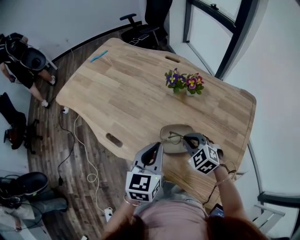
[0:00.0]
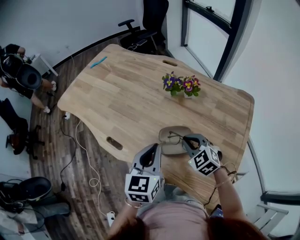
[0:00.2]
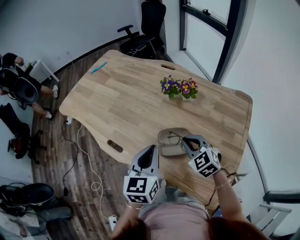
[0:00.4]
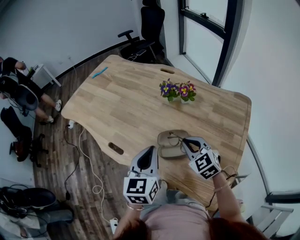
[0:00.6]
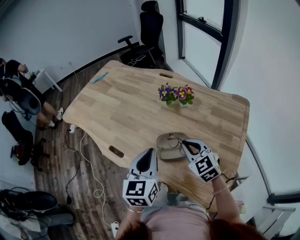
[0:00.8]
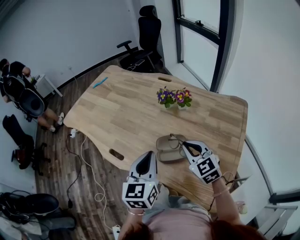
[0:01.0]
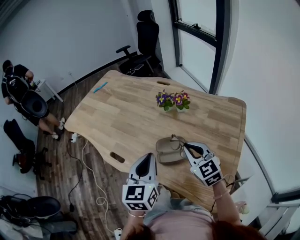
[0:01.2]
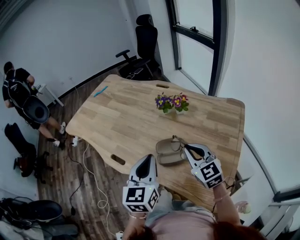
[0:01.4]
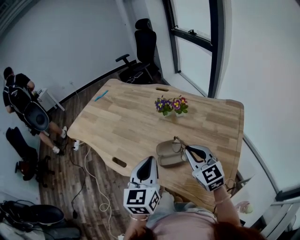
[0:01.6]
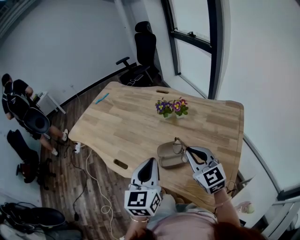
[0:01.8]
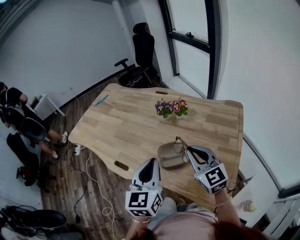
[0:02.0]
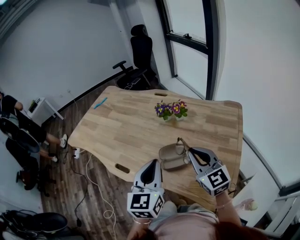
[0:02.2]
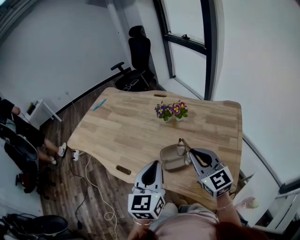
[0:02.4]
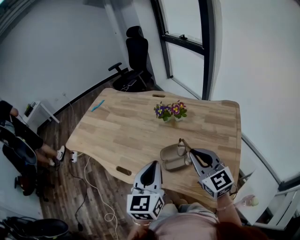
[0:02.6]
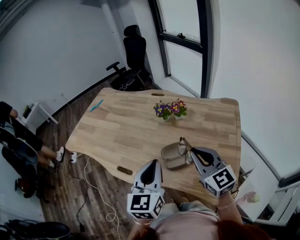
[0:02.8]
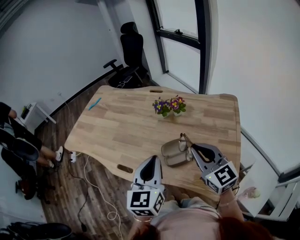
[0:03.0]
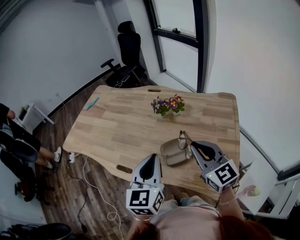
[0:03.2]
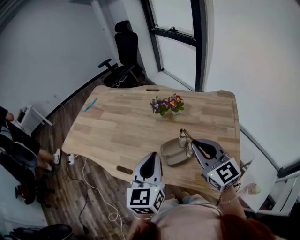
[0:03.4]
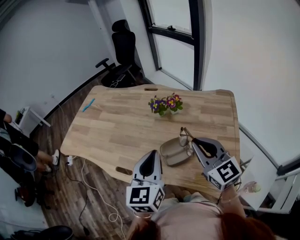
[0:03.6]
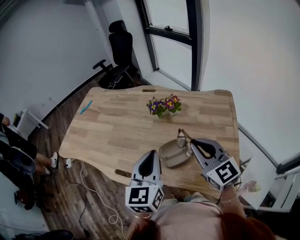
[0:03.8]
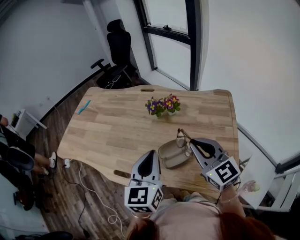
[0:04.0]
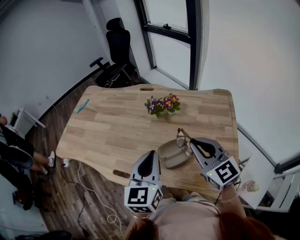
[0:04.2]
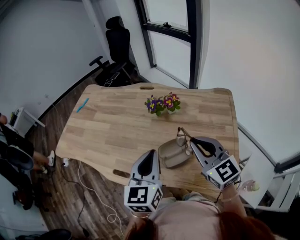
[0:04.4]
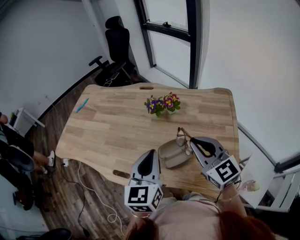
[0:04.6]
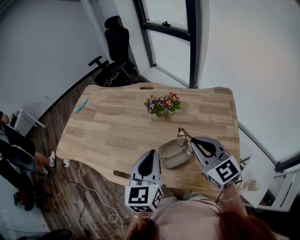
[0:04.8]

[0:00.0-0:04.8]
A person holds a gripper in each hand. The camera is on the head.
0:00.0 to 0:01.6: The right gripper goes roughly 15 cm upward and backward, and angles its fingers upward, by roughly 30 degrees. Meanwhile the left gripper moves upward and backward, about 10 cm.
0:01.6 to 0:03.2: The right gripper is displaced upward by approximately 10 cm.
0:03.2 to 0:04.8: The left gripper shifts approximately 5 cm forward.

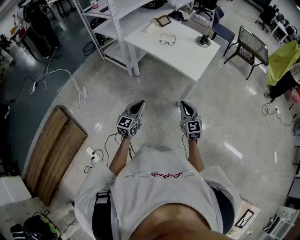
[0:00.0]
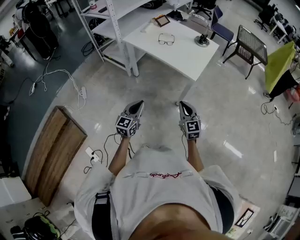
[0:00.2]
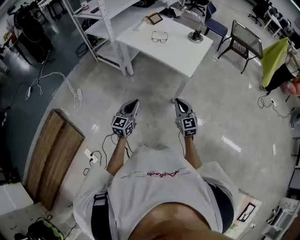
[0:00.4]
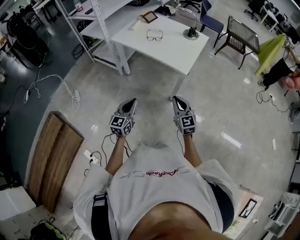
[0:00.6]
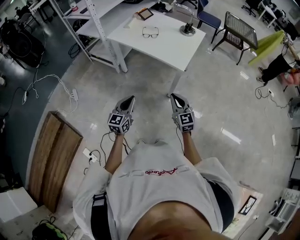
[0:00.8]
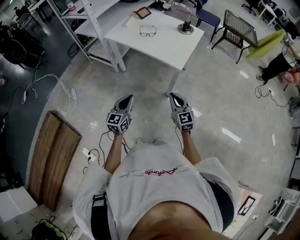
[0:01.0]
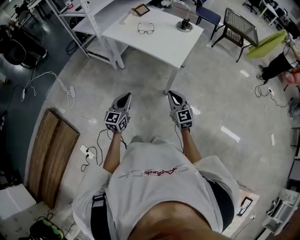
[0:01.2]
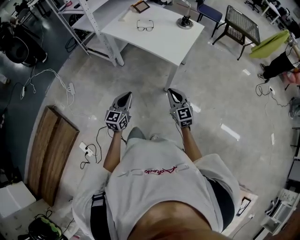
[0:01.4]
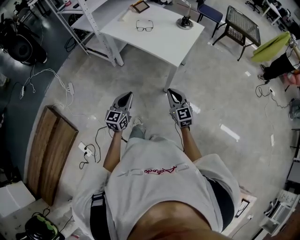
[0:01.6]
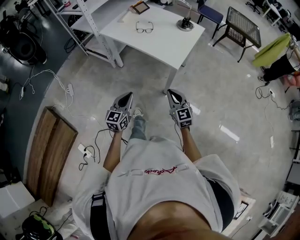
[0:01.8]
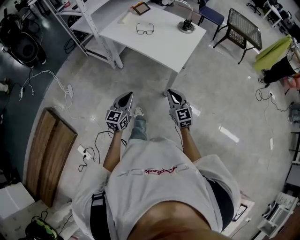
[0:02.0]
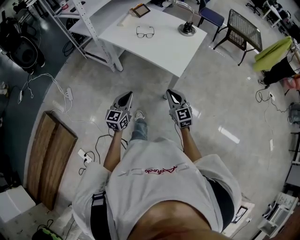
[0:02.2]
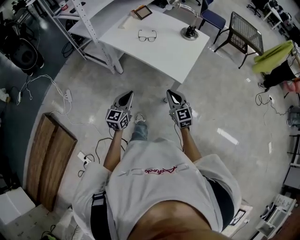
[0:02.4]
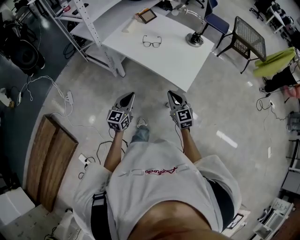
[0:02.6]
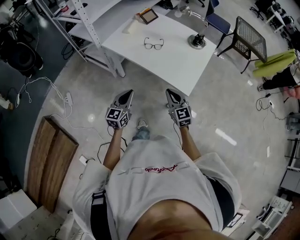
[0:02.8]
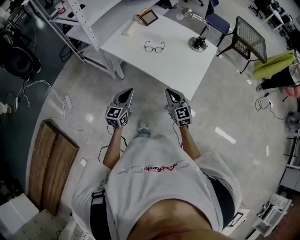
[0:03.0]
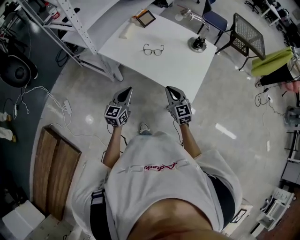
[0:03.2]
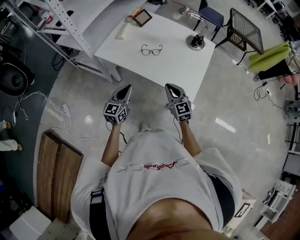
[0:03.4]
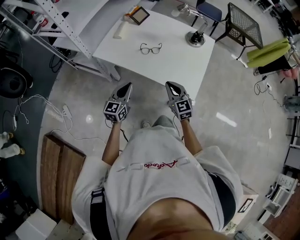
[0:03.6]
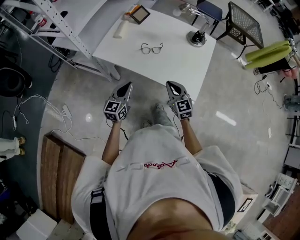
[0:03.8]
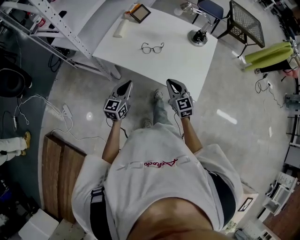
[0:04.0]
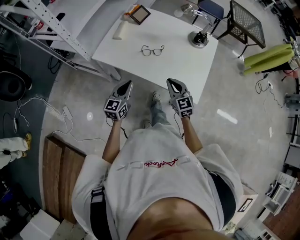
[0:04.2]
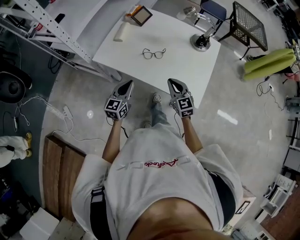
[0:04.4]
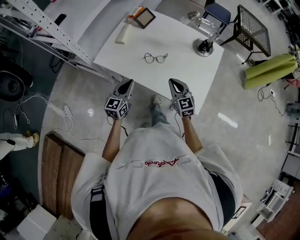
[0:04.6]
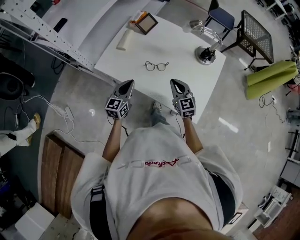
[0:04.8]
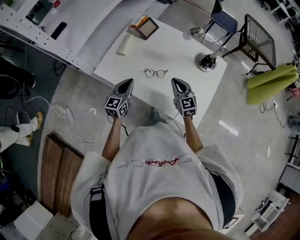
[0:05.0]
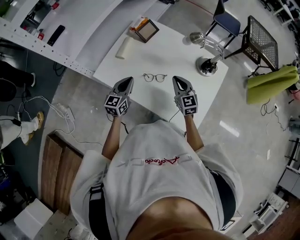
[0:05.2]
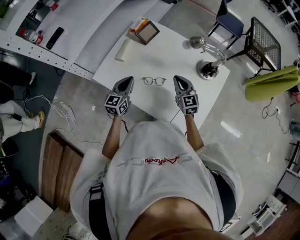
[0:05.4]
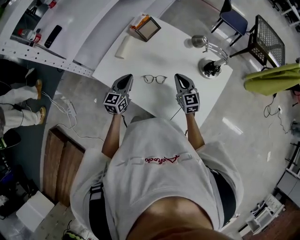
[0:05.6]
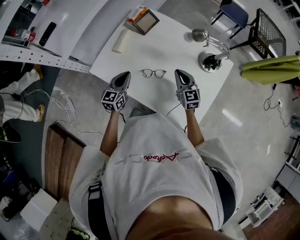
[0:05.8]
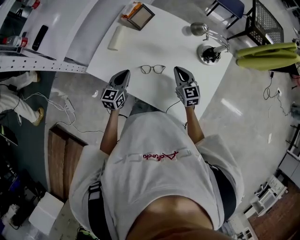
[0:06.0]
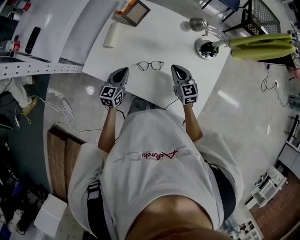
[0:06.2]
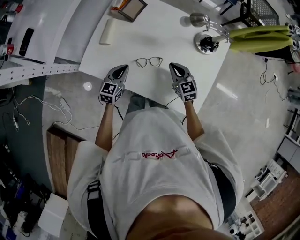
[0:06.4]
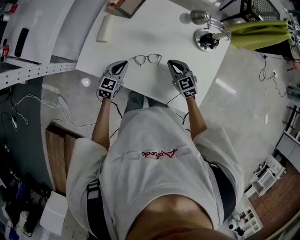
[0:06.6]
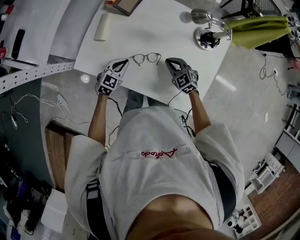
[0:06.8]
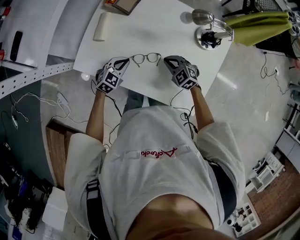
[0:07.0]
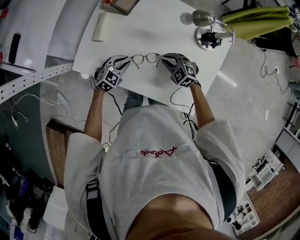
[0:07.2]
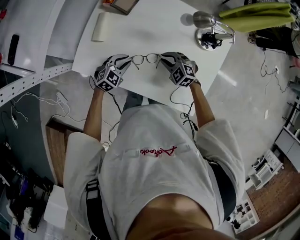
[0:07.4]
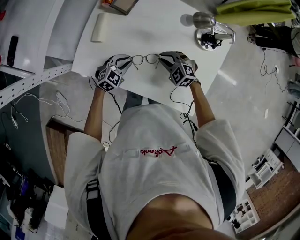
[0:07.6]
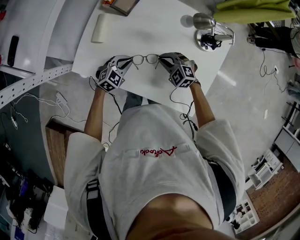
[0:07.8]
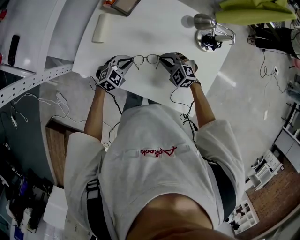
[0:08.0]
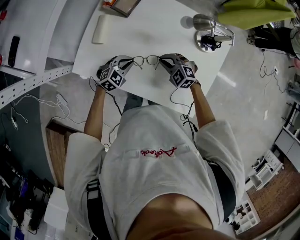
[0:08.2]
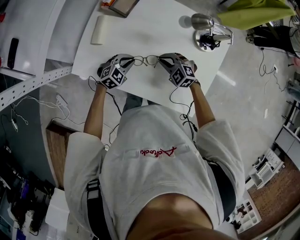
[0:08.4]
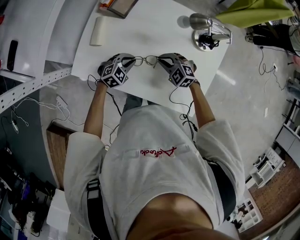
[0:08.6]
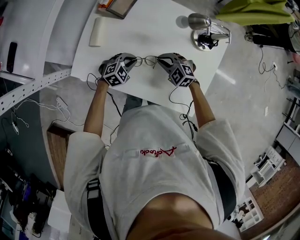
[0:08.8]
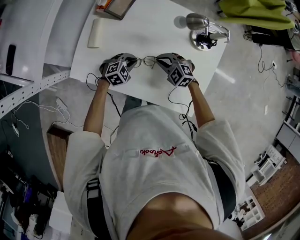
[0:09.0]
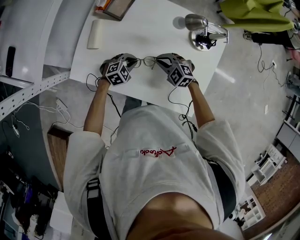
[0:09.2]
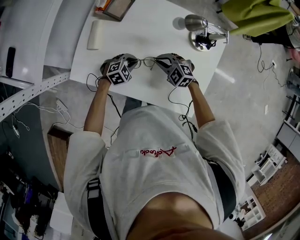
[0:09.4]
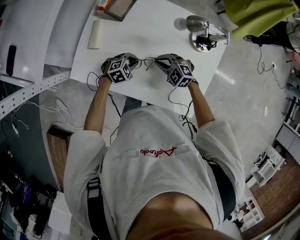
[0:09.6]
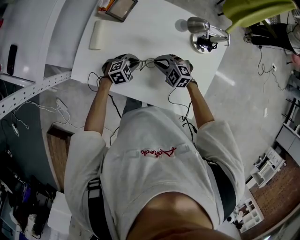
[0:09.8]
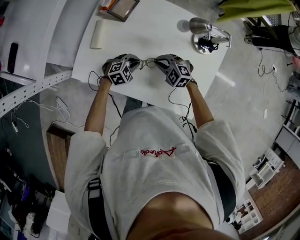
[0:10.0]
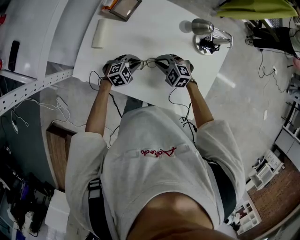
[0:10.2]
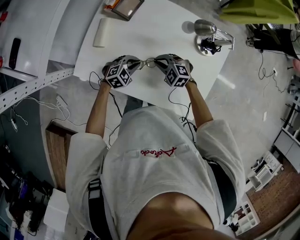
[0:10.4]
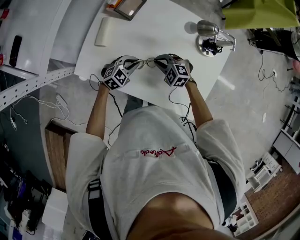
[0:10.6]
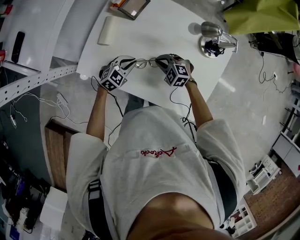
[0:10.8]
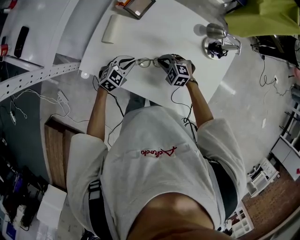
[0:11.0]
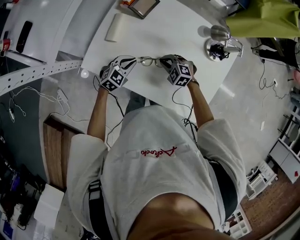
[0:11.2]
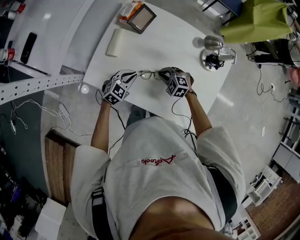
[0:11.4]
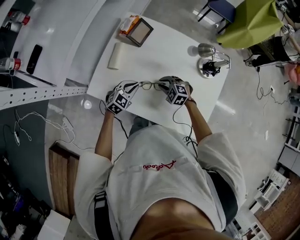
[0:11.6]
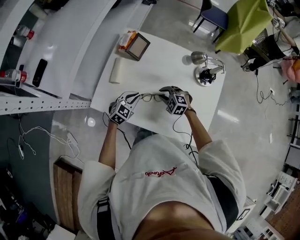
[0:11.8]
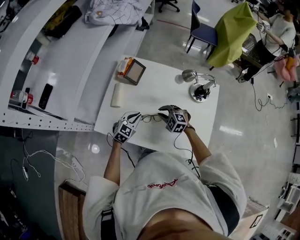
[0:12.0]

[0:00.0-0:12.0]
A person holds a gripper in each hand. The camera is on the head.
0:00.0 to 0:01.6: Both grippers travel together to the right, approximately 5 cm.
0:01.6 to 0:03.0: Both grippers travel together forward, roughly 25 cm.
0:03.0 to 0:04.4: Both grippers move forward, approximately 15 cm.
0:04.4 to 0:06.0: Both grippers travel together forward, approximately 20 cm.
0:06.0 to 0:07.6: The left gripper travels downward and to the right by roughly 10 cm, and swivels some 50 degrees. The right gripper shifts some 10 cm downward and to the left, and changes its angle by approximately 50 degrees.
0:07.6 to 0:09.0: The left gripper moves approximately 5 cm.
0:09.0 to 0:10.4: The grippers move only a little.
0:10.4 to 0:12.0: The left gripper moves upward, about 5 cm, and turns by some 20 degrees.

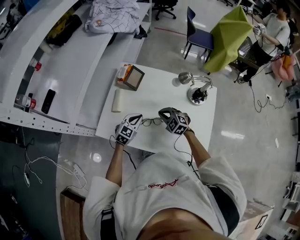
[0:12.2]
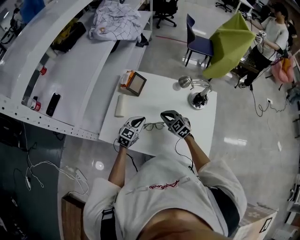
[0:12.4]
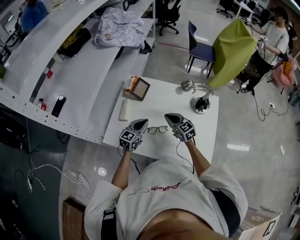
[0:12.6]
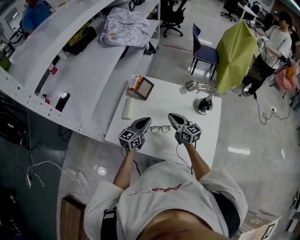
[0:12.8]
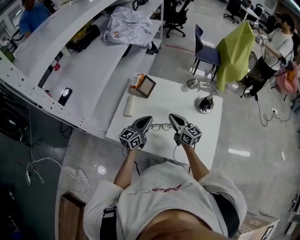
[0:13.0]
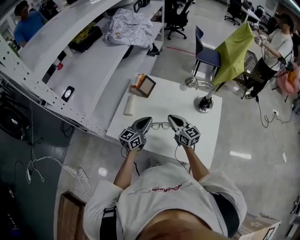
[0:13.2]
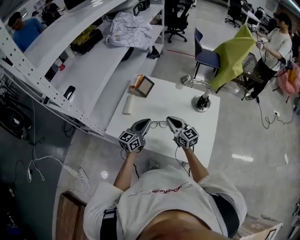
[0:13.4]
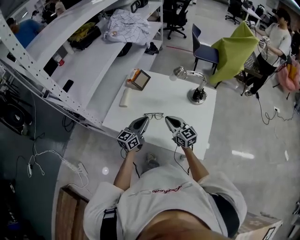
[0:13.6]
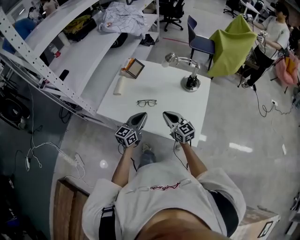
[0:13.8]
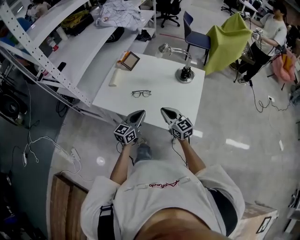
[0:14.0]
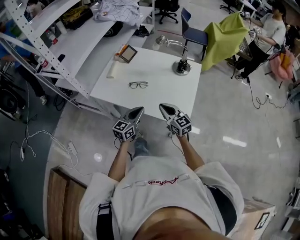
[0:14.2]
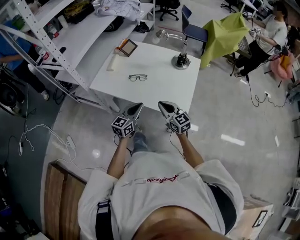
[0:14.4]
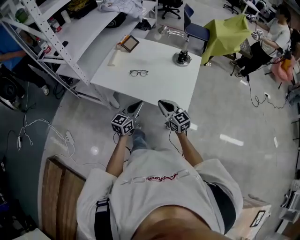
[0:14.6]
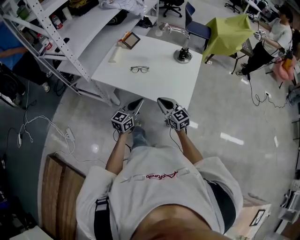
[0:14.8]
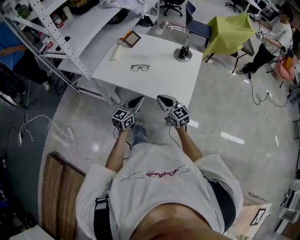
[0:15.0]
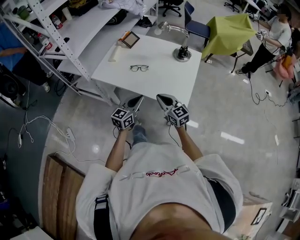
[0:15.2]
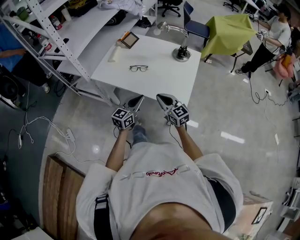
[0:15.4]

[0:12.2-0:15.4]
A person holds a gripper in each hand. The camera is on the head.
0:12.2 to 0:13.8: Both grippers travel together backward, upward and to the right, approximately 20 cm. The right gripper tips its fingers upward by about 30 degrees. The left gripper swivels approximately 40 degrees.
0:13.8 to 0:15.4: Both grippers move backward, approximately 15 cm.

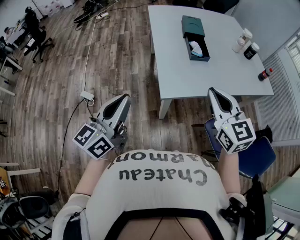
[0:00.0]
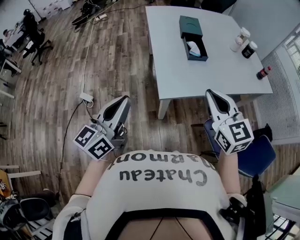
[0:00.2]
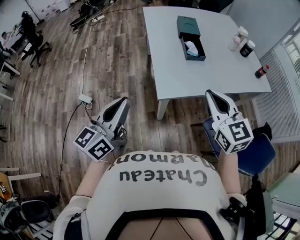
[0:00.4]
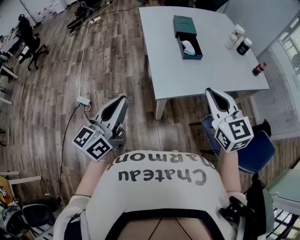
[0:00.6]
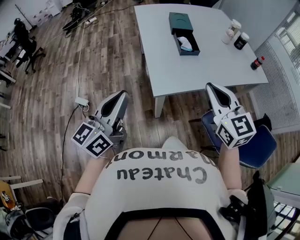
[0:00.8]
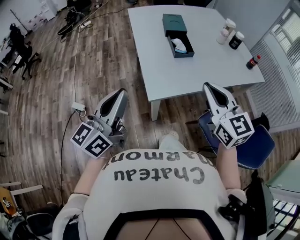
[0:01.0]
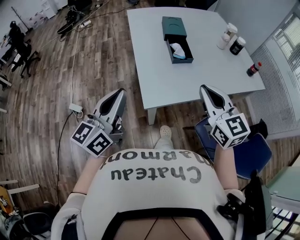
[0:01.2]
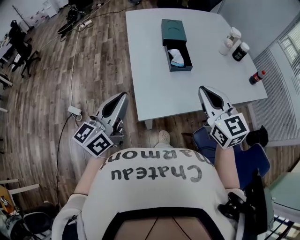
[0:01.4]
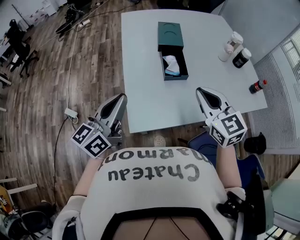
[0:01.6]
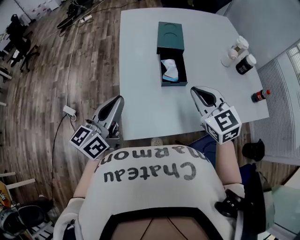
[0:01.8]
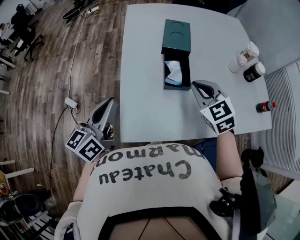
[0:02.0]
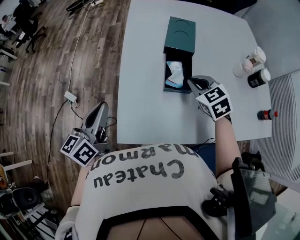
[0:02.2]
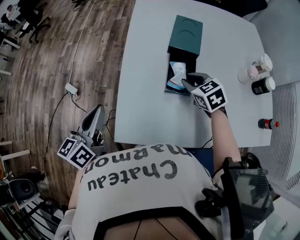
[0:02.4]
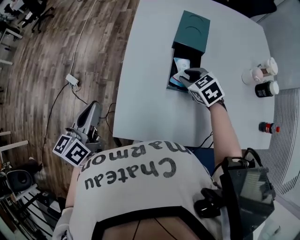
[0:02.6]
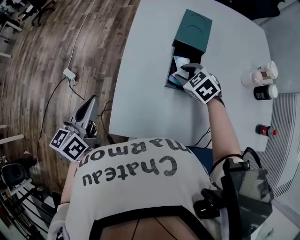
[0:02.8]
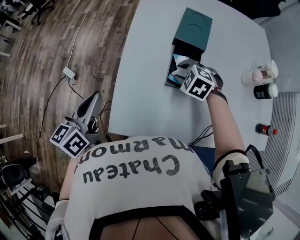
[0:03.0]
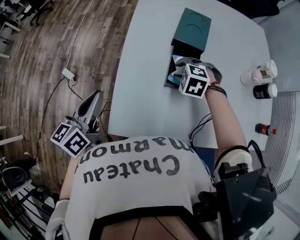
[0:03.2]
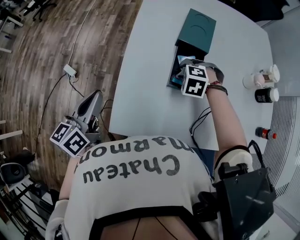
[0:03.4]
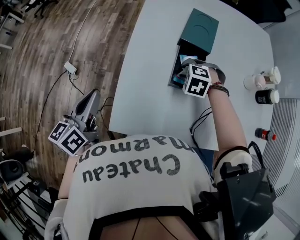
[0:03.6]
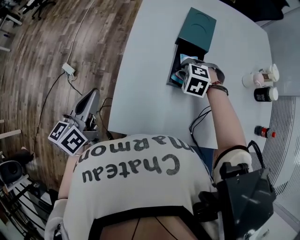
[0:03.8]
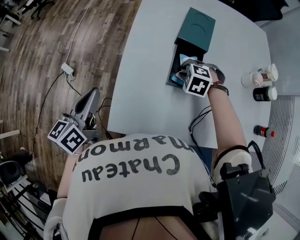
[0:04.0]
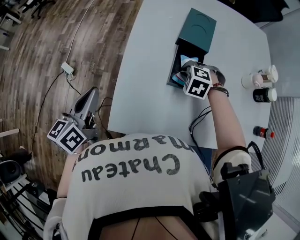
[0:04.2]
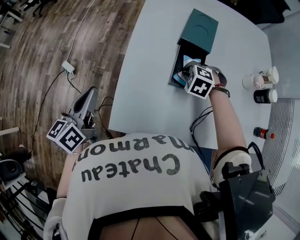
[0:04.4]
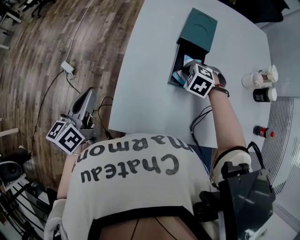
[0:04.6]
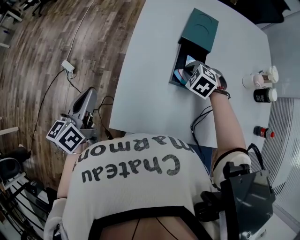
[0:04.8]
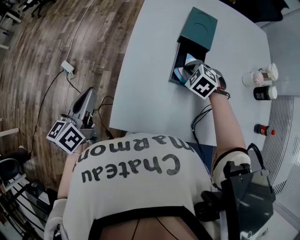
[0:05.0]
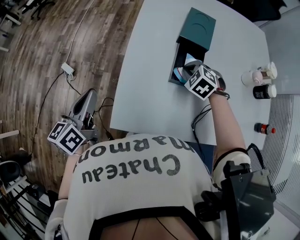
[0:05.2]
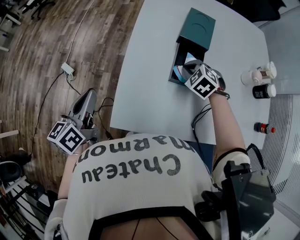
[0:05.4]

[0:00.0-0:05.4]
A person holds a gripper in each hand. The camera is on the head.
0:00.0 to 0:01.4: Both grippers move forward and to the right, roughly 15 cm.
0:01.4 to 0:02.8: The left gripper moves approximately 15 cm, and rotates approximately 30 degrees. The right gripper changes place by about 35 cm, points its fingers some 40 degrees further downward, and opens up.
0:02.8 to 0:04.0: The right gripper rotates roughly 30 degrees.
0:04.0 to 0:05.4: The right gripper swivels about 20 degrees.
